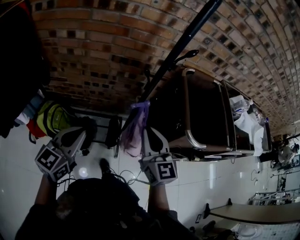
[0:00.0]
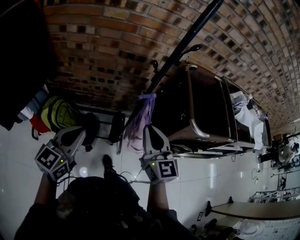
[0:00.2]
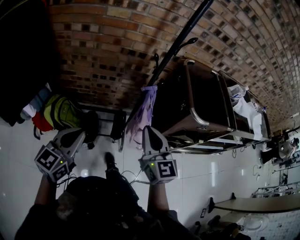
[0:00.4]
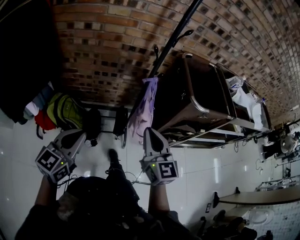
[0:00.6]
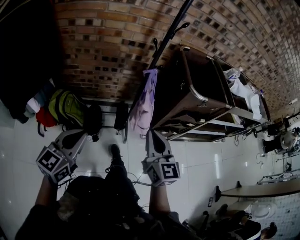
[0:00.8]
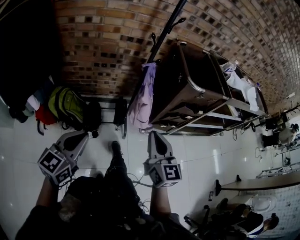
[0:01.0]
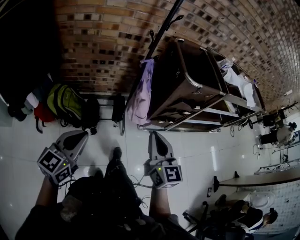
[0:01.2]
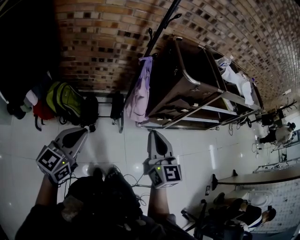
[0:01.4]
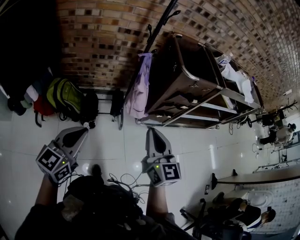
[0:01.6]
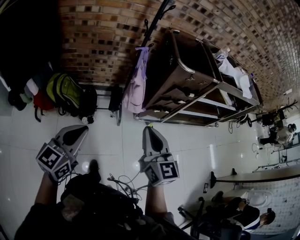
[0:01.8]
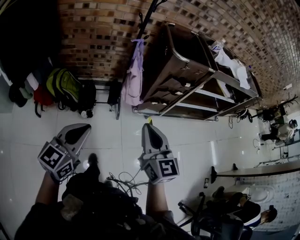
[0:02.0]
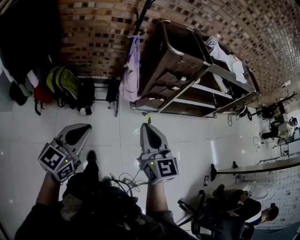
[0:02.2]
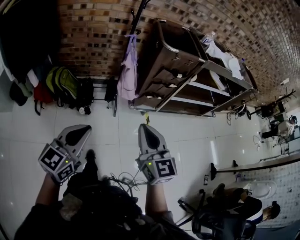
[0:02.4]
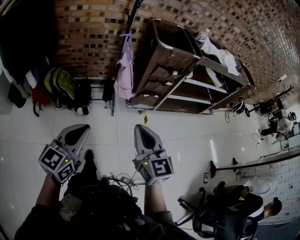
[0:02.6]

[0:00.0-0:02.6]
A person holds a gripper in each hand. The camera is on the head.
0:00.0 to 0:01.2: Both grippers move backward, roughly 35 cm.
0:01.2 to 0:02.6: The grippers both shift backward and to the right by about 30 cm.

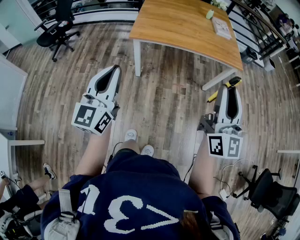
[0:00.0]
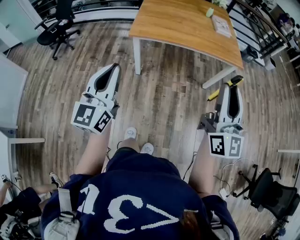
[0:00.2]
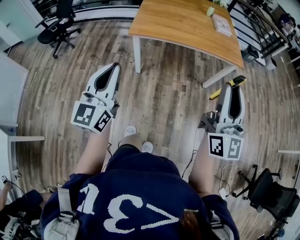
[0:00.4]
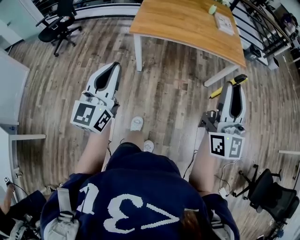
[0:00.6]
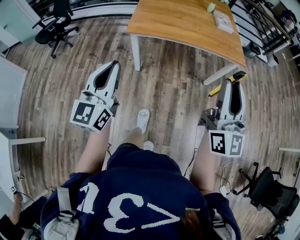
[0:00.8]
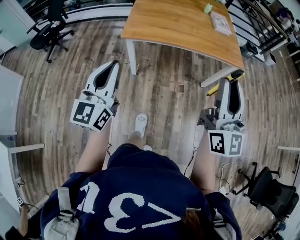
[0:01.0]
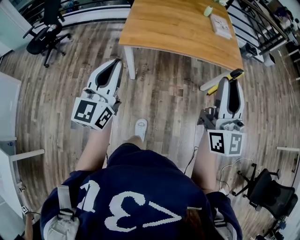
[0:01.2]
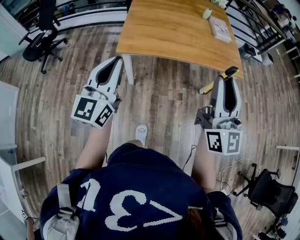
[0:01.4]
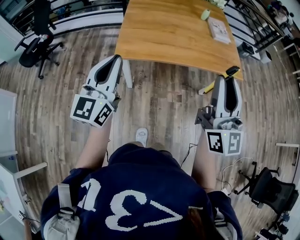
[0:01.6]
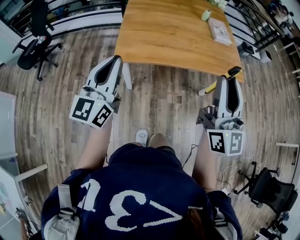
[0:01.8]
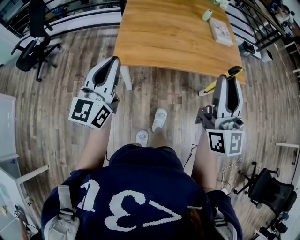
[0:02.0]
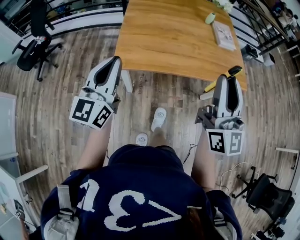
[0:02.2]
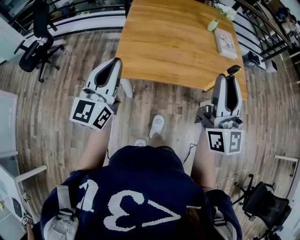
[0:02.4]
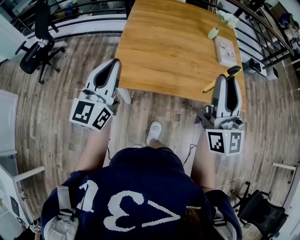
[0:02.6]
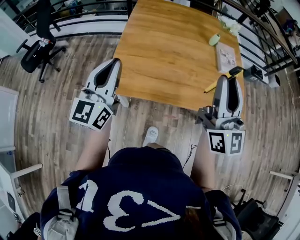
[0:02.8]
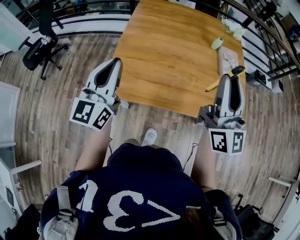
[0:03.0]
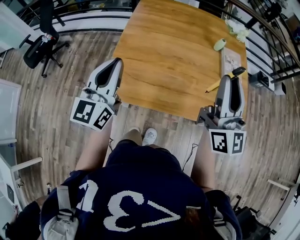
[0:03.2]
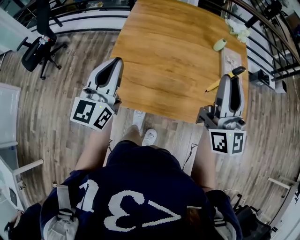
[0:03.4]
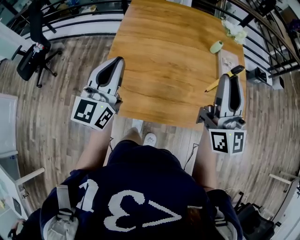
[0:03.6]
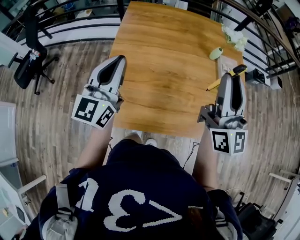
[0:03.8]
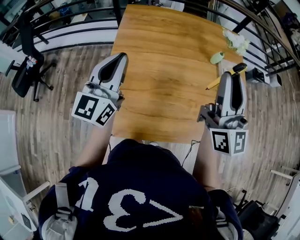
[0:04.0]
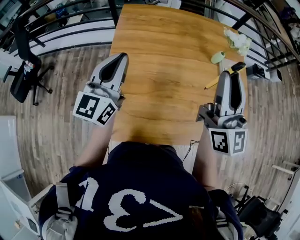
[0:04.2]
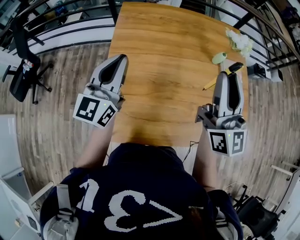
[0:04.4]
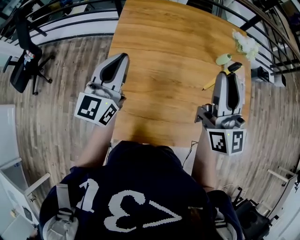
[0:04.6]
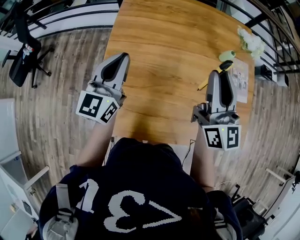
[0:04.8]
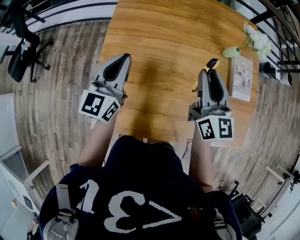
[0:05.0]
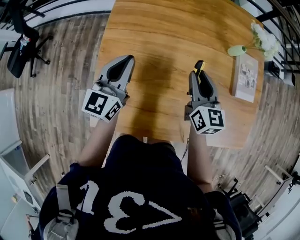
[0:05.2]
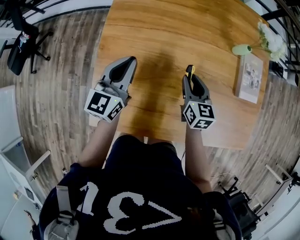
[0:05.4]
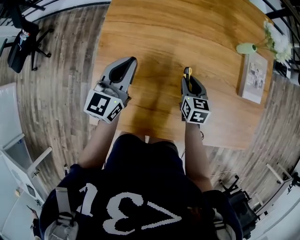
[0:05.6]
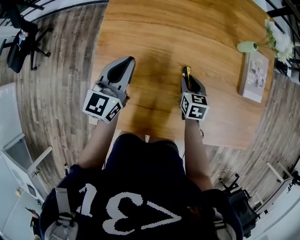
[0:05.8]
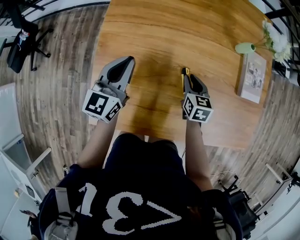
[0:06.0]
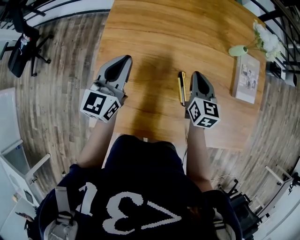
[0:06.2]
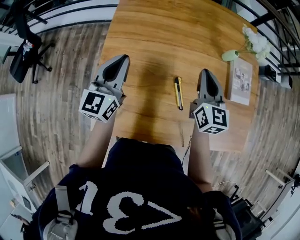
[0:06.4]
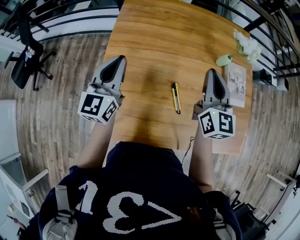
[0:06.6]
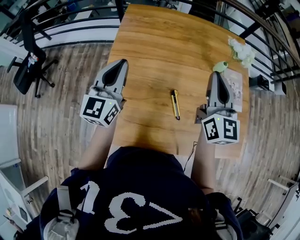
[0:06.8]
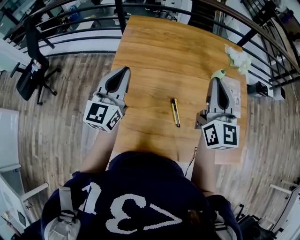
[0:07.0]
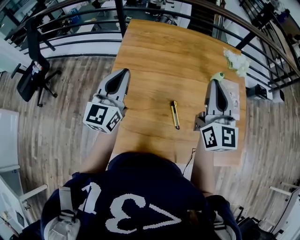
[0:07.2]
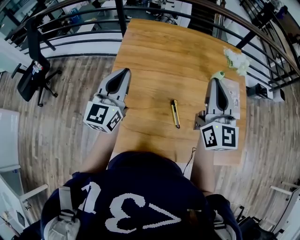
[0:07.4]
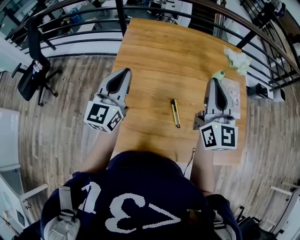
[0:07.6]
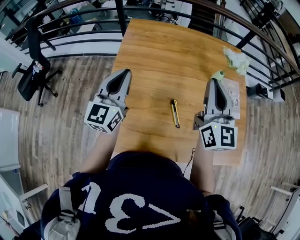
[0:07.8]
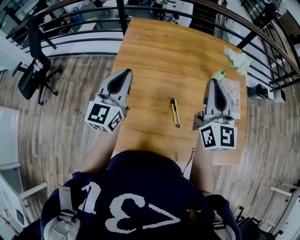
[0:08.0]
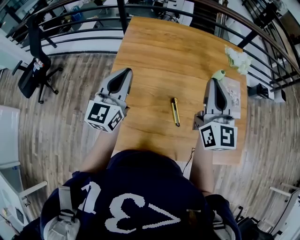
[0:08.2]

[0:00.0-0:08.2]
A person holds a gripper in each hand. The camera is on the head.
0:00.0 to 0:01.6: Both grippers move forward, about 25 cm.
0:01.6 to 0:03.2: The two grippers go approximately 35 cm forward.
0:03.2 to 0:05.0: The grippers both shift forward and downward by about 30 cm. The right gripper turns by approximately 20 degrees.
0:05.0 to 0:06.6: The left gripper reaches about 10 cm downward, then returns. The right gripper goes downward and returns, roughly 30 cm each way, and closes up.
0:06.6 to 0:08.2: The left gripper ends up roughly 5 cm from where it was; the right gripper moves upward, roughly 10 cm.

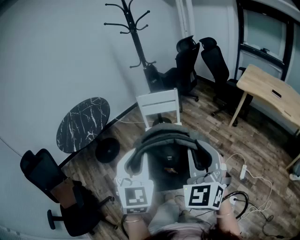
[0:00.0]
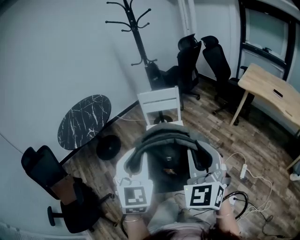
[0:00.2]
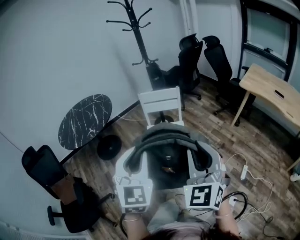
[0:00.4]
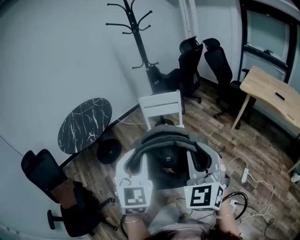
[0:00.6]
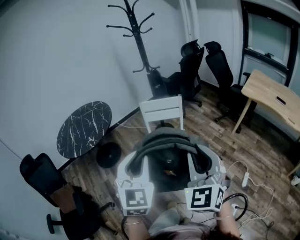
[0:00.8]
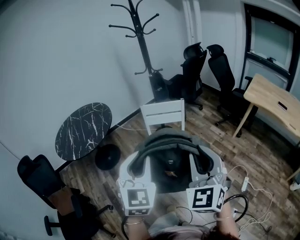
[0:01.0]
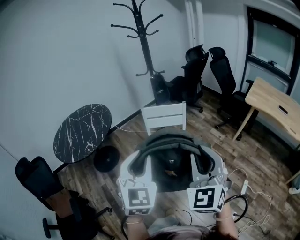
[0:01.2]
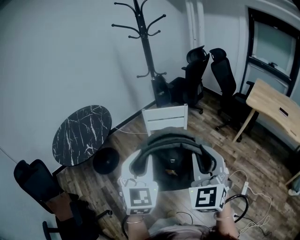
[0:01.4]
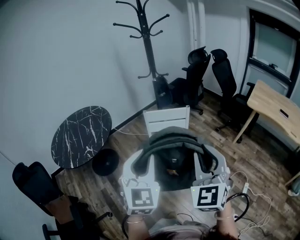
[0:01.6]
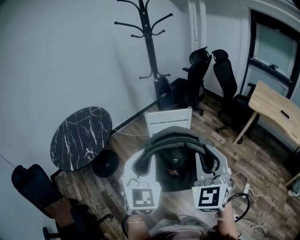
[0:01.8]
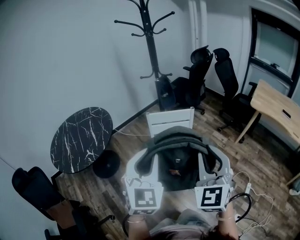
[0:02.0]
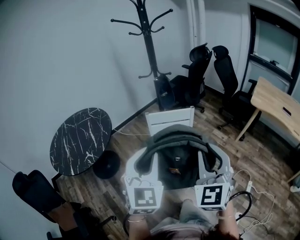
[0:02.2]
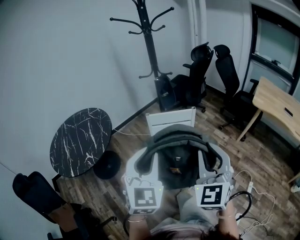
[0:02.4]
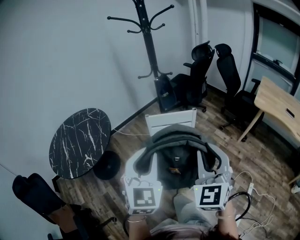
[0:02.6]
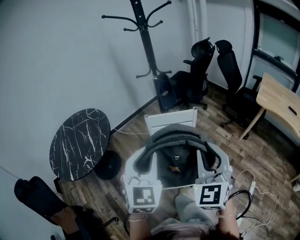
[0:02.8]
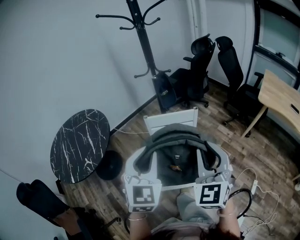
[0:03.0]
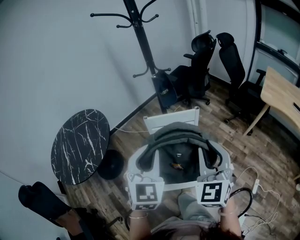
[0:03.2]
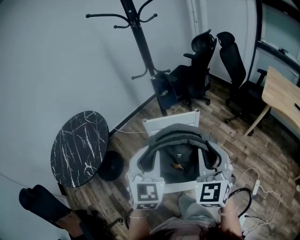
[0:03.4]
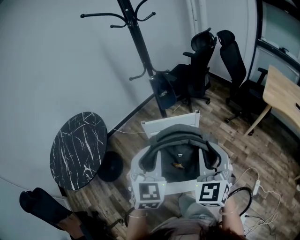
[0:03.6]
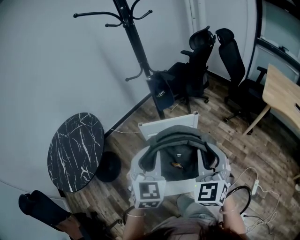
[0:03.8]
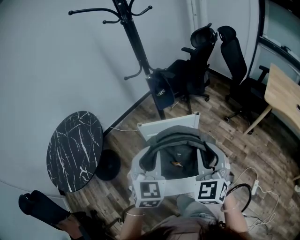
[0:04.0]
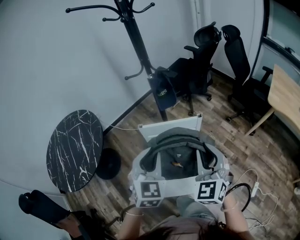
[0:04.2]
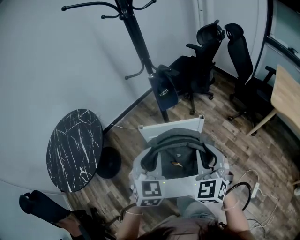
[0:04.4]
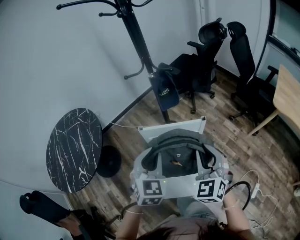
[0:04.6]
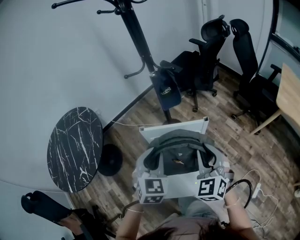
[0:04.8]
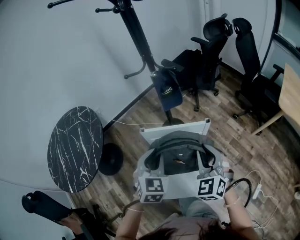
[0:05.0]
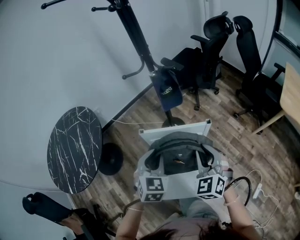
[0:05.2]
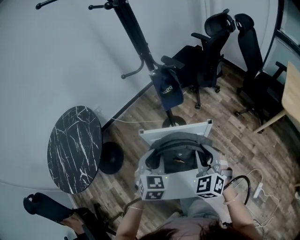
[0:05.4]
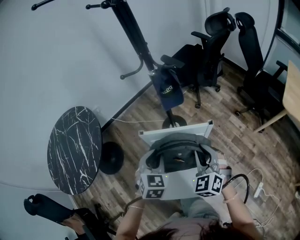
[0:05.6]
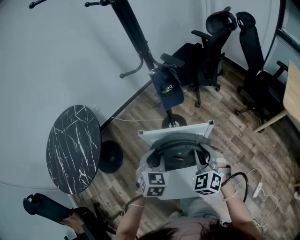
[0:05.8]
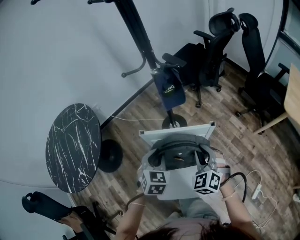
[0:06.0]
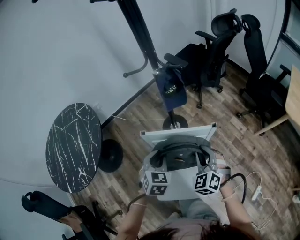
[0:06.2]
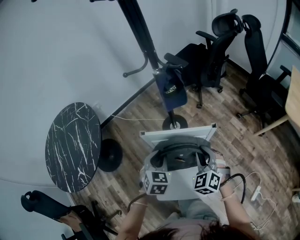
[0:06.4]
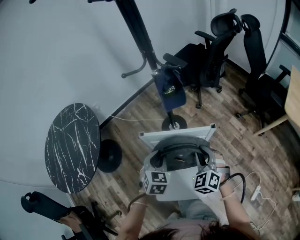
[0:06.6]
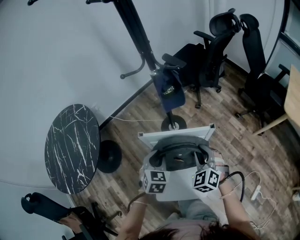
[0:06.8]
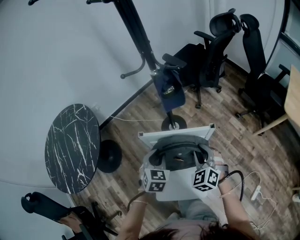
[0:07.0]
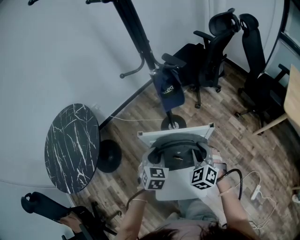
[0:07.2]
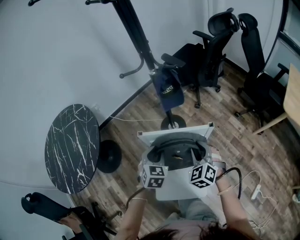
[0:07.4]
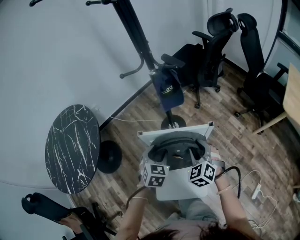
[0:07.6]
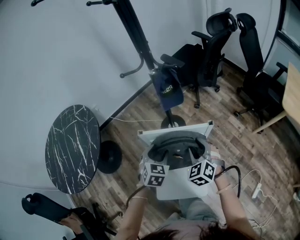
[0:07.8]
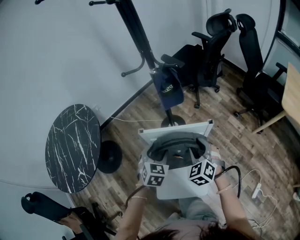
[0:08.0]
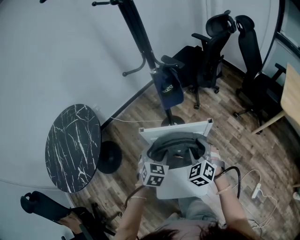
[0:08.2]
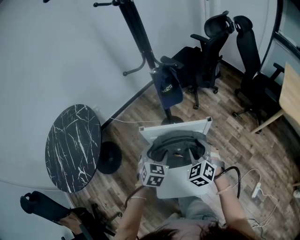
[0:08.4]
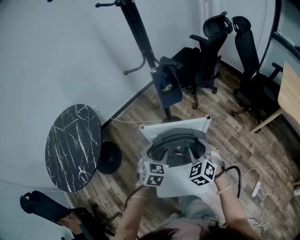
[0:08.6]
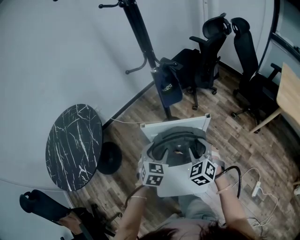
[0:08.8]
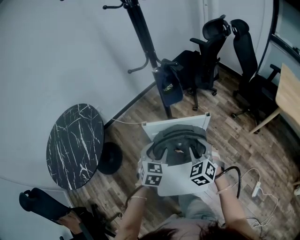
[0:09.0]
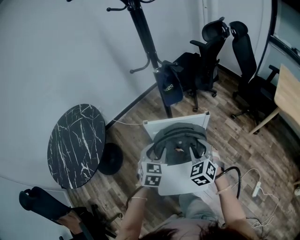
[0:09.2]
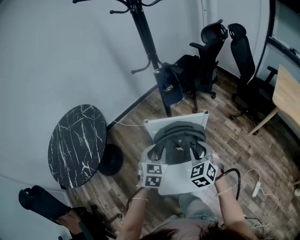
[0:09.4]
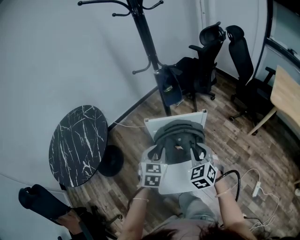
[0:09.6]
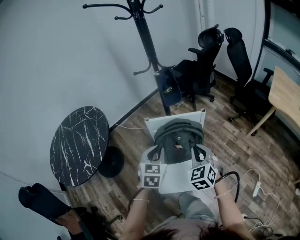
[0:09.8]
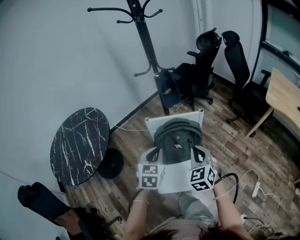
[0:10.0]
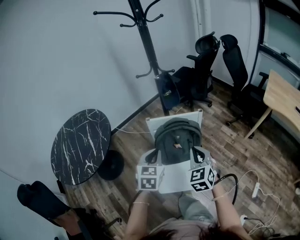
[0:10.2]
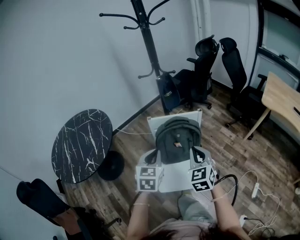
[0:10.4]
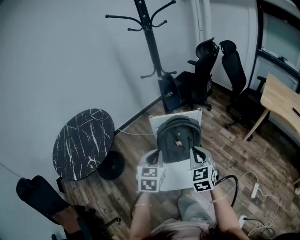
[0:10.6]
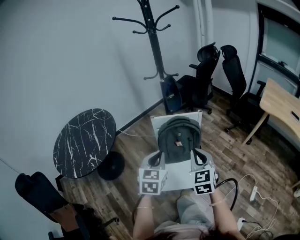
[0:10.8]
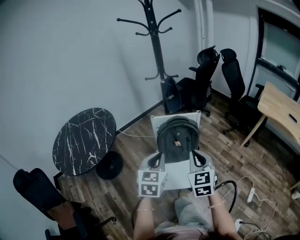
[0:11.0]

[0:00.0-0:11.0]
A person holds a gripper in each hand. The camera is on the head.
0:00.0 to 0:01.6: The grippers both shift forward by some 15 cm.
0:01.6 to 0:03.2: The two grippers go approximately 20 cm forward.
0:03.2 to 0:04.8: Both grippers move forward and downward, some 25 cm.
0:04.8 to 0:06.2: Both grippers travel together downward and forward, some 15 cm.
0:06.2 to 0:07.8: The left gripper opens. Meanwhile the right gripper opens.
0:07.8 to 0:09.4: The two grippers go some 15 cm backward and upward. The left gripper closes its fingers.
0:09.4 to 0:11.0: The grippers both shift backward and upward by roughly 25 cm. The left gripper closes; the right gripper changes its angle by some 30 degrees, and closes up.

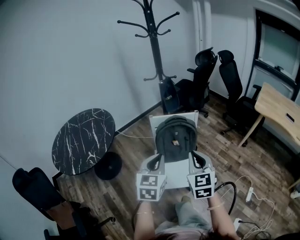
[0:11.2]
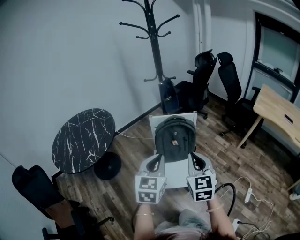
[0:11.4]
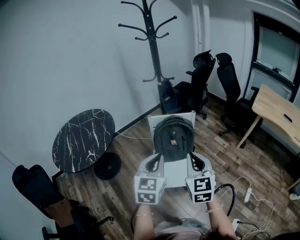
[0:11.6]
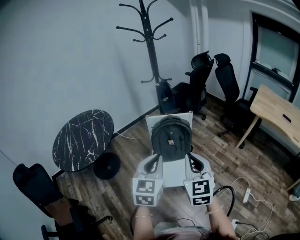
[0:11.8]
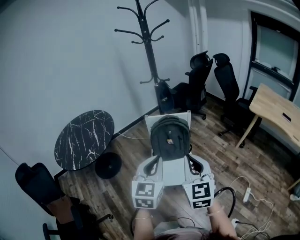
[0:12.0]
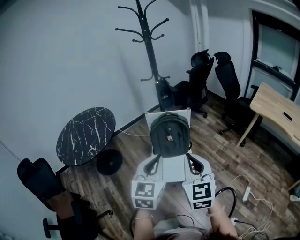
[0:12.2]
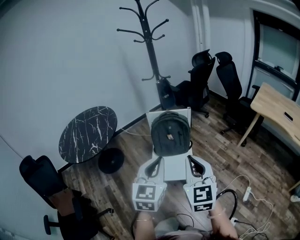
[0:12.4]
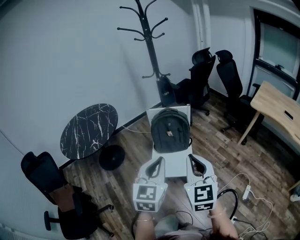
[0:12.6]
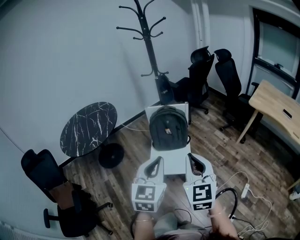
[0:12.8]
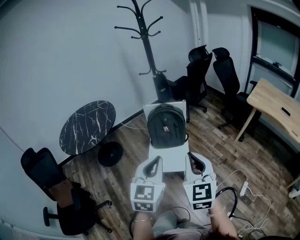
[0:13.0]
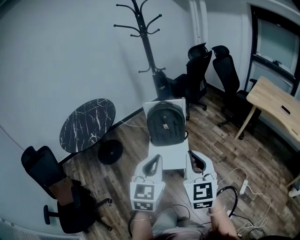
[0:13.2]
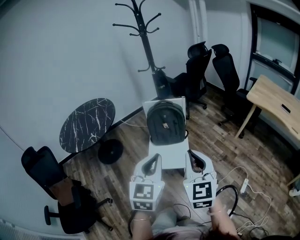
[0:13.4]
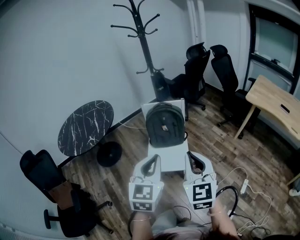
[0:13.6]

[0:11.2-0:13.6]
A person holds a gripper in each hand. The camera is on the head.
0:11.2 to 0:12.4: The left gripper heads backward, to the right and upward, covering roughly 20 cm; the right gripper goes roughly 20 cm backward, upward and to the right.
0:12.4 to 0:13.6: The right gripper changes place by some 5 cm; the left gripper shifts roughly 5 cm backward.
